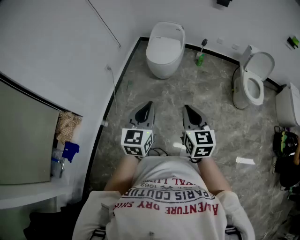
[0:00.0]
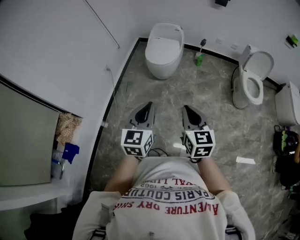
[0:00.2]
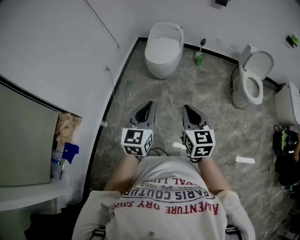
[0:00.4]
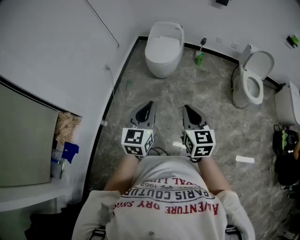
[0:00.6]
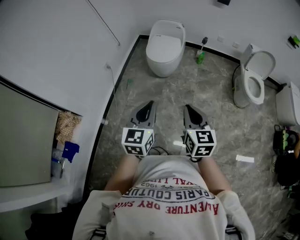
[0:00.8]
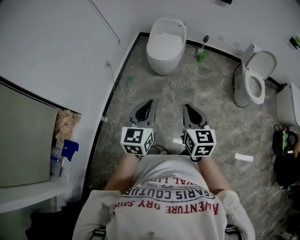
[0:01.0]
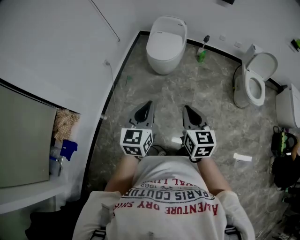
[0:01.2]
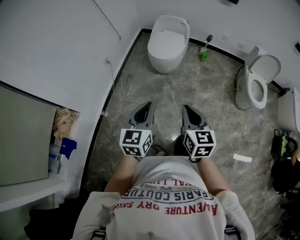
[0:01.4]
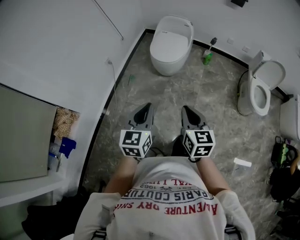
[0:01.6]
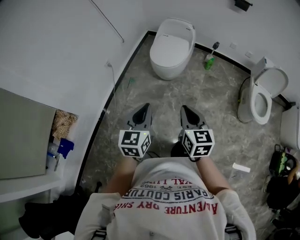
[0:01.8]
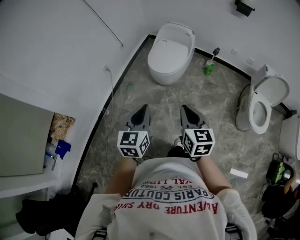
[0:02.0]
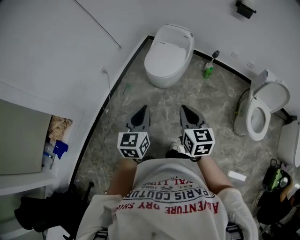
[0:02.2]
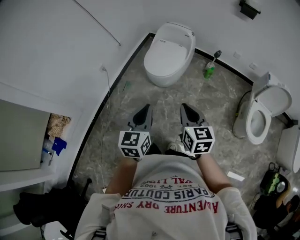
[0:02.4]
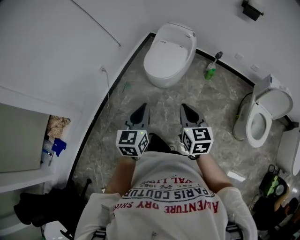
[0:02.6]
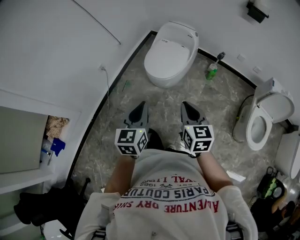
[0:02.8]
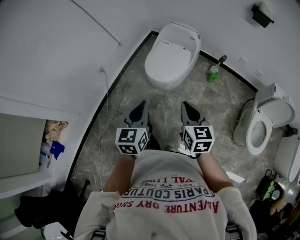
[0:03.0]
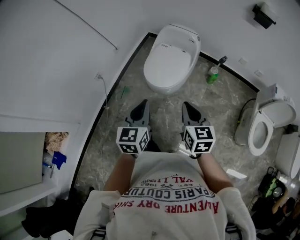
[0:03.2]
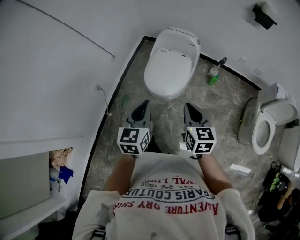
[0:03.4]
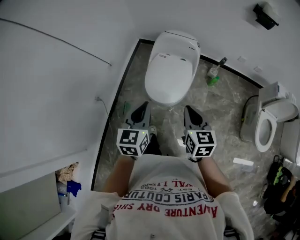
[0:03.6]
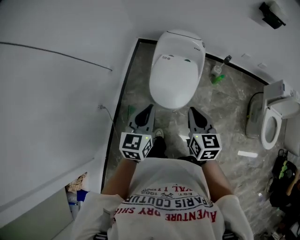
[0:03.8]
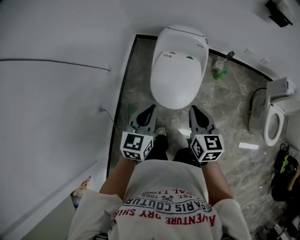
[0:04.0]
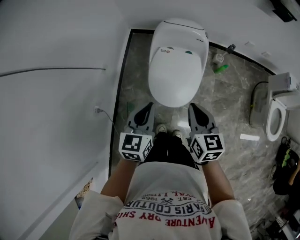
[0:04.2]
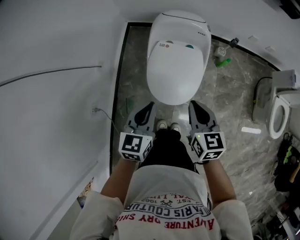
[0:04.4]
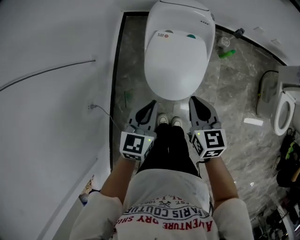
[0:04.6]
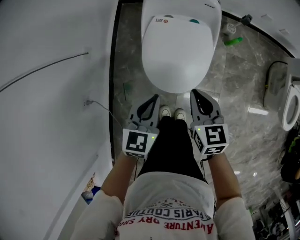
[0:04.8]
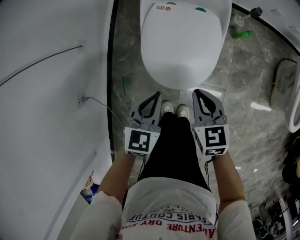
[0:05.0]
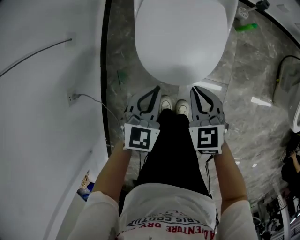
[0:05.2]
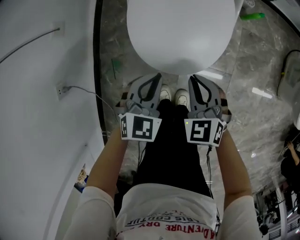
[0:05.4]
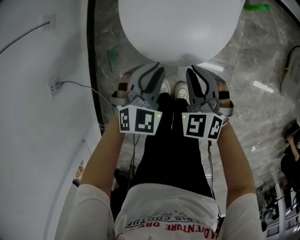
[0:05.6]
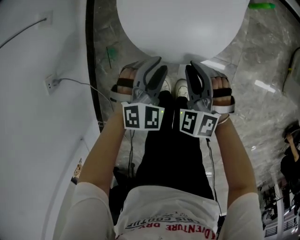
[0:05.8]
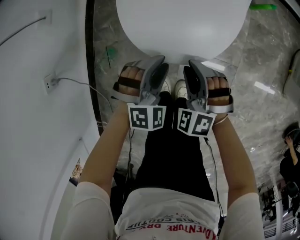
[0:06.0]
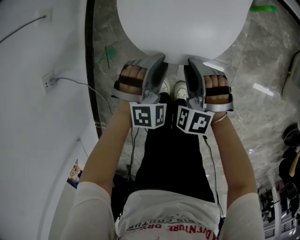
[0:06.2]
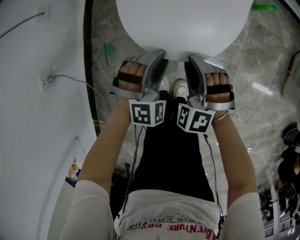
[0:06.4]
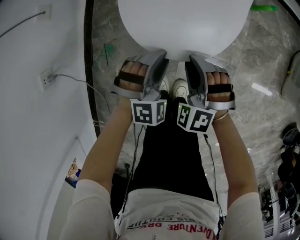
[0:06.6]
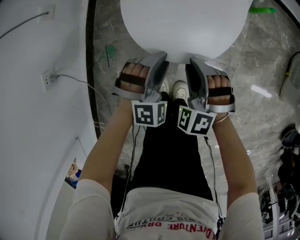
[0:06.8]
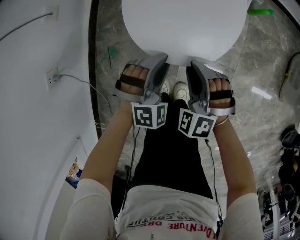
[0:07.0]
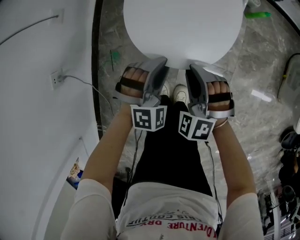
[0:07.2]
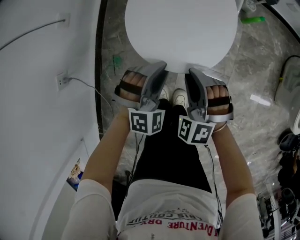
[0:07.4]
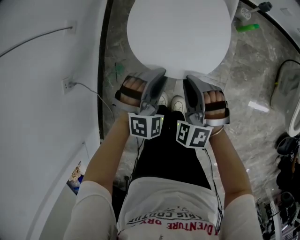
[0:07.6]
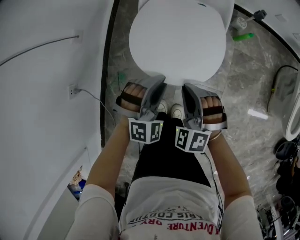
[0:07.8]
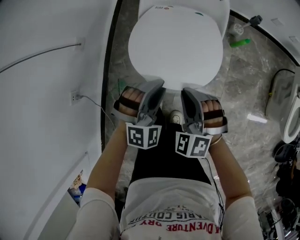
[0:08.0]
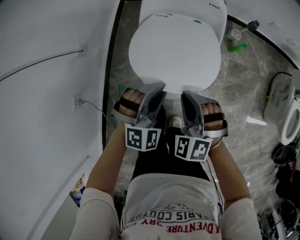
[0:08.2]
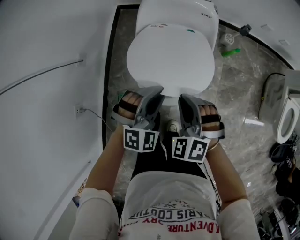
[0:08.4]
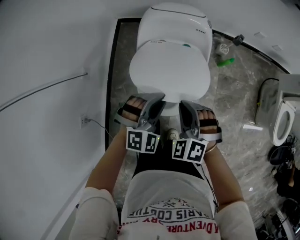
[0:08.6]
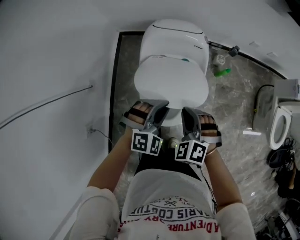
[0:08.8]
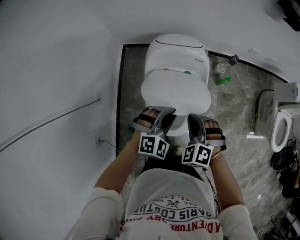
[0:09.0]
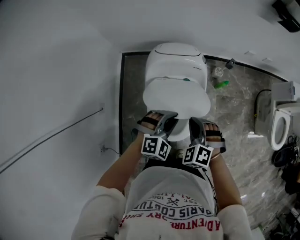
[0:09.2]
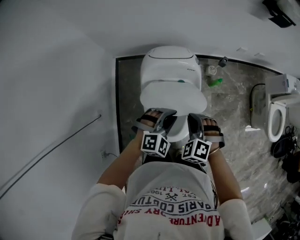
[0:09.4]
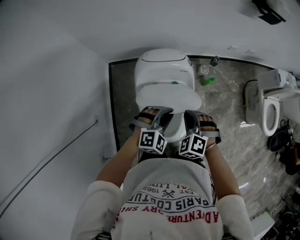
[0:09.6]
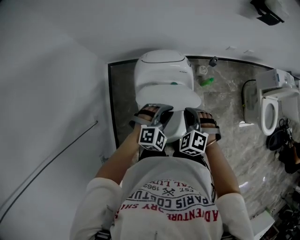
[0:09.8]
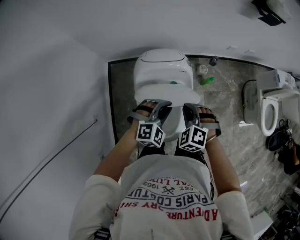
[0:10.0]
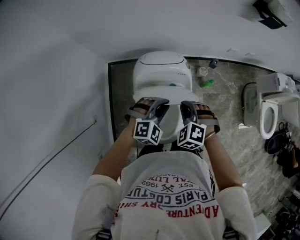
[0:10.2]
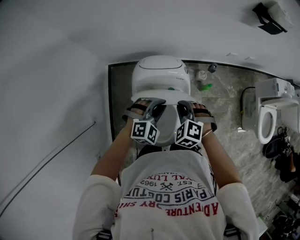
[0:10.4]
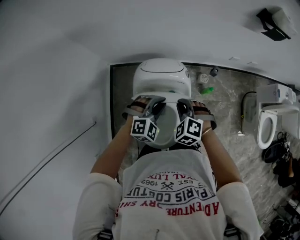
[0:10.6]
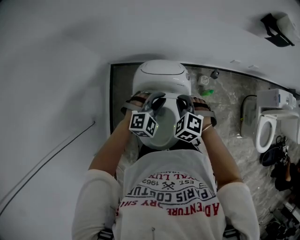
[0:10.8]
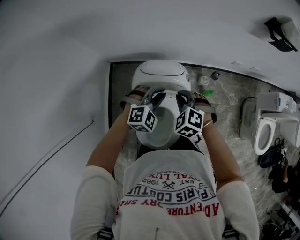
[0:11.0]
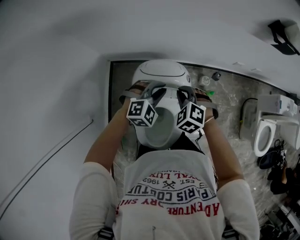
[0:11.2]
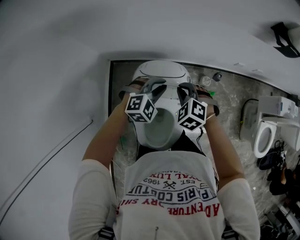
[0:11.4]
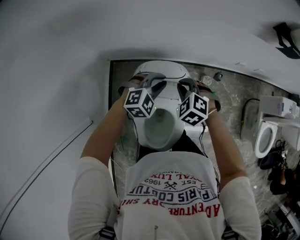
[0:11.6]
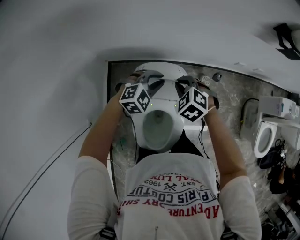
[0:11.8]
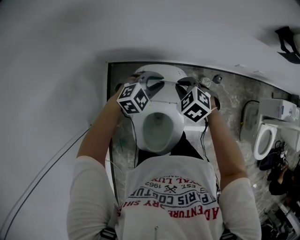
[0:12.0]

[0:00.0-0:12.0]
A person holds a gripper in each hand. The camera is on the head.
0:00.0 to 0:01.6: Both grippers move forward, about 10 cm.
0:01.6 to 0:03.0: The two grippers go approximately 30 cm forward and to the right.
0:03.0 to 0:04.4: Both grippers travel together forward, to the left and downward, about 40 cm. The right gripper turns by about 20 degrees, while the left gripper changes its angle by roughly 30 degrees.
0:04.4 to 0:06.0: The two grippers go some 40 cm downward. The left gripper rotates around the line of its fingers by some 60 degrees, clockwise from behind, and opens its fingers. Meanwhile the right gripper twists some 70 degrees counterclockwise, seen from behind.
0:06.0 to 0:07.6: Both grippers move upward, approximately 15 cm.
0:07.6 to 0:09.0: The two grippers go about 25 cm upward and forward.
0:09.0 to 0:10.4: The two grippers go approximately 15 cm forward.
0:10.4 to 0:12.0: The grippers both shift forward by about 20 cm.

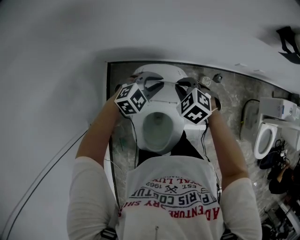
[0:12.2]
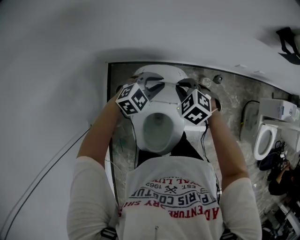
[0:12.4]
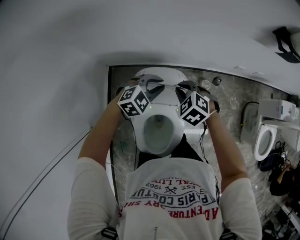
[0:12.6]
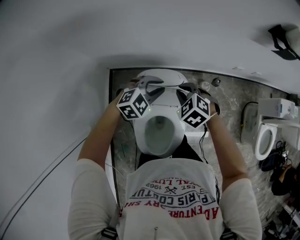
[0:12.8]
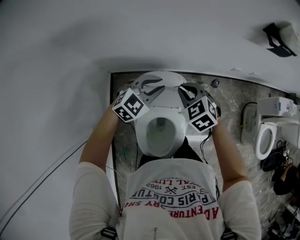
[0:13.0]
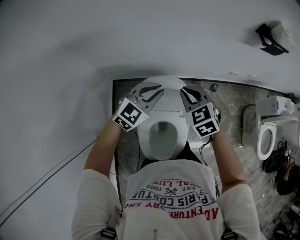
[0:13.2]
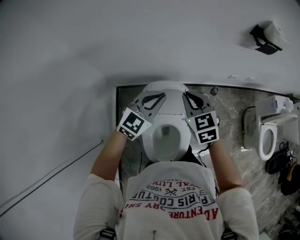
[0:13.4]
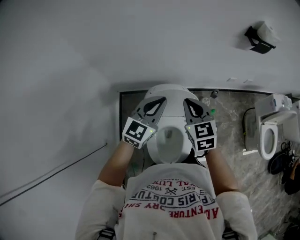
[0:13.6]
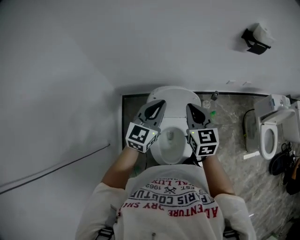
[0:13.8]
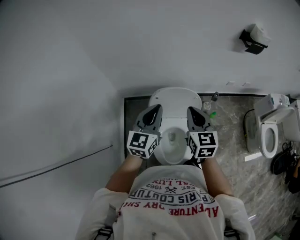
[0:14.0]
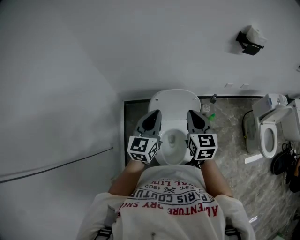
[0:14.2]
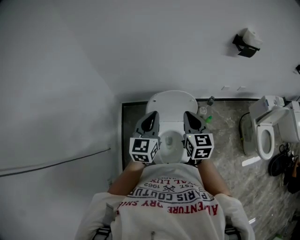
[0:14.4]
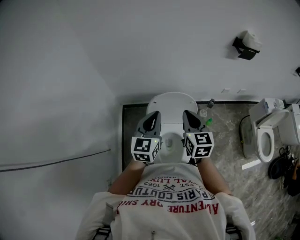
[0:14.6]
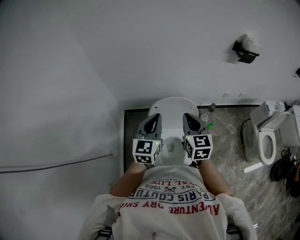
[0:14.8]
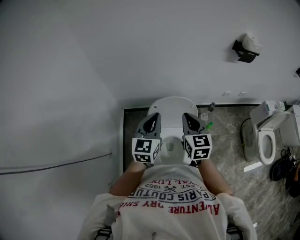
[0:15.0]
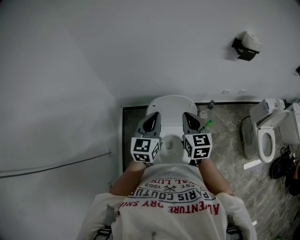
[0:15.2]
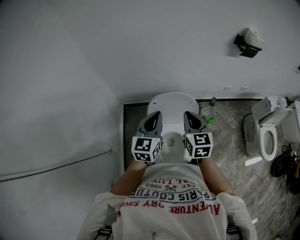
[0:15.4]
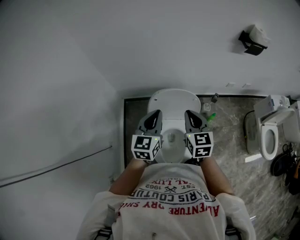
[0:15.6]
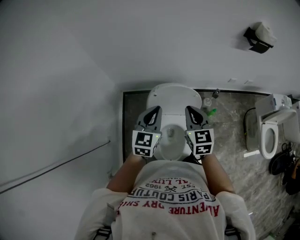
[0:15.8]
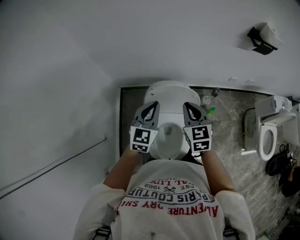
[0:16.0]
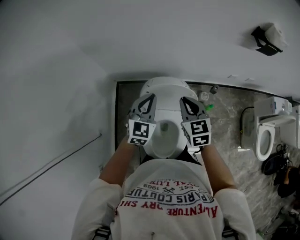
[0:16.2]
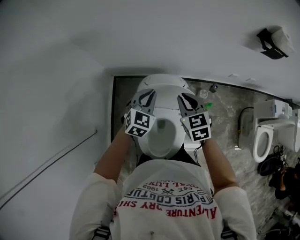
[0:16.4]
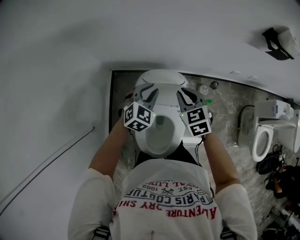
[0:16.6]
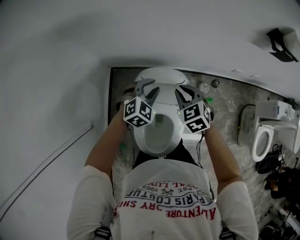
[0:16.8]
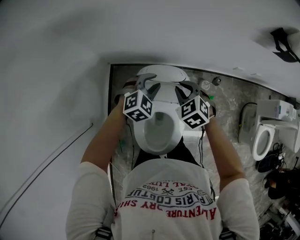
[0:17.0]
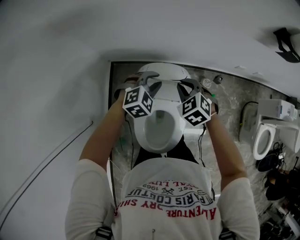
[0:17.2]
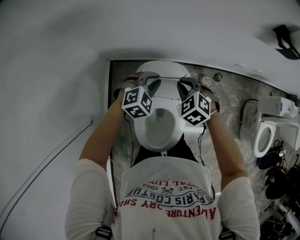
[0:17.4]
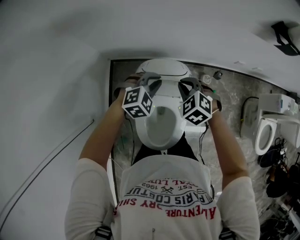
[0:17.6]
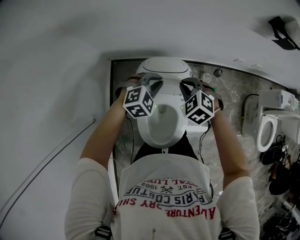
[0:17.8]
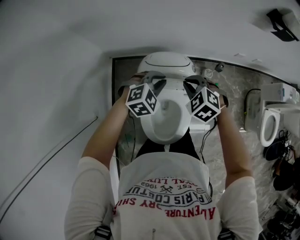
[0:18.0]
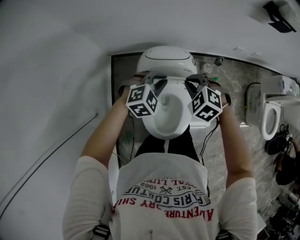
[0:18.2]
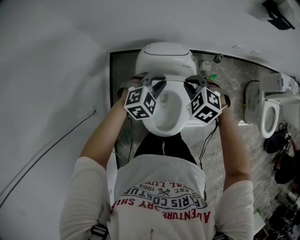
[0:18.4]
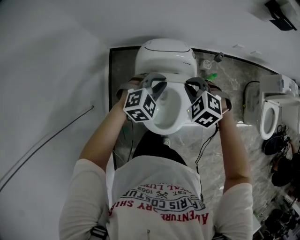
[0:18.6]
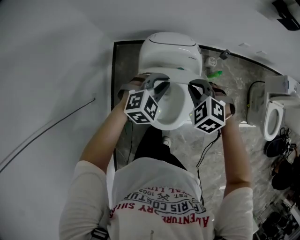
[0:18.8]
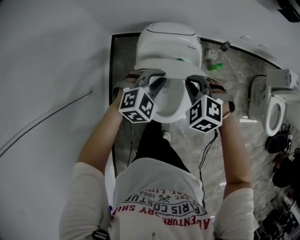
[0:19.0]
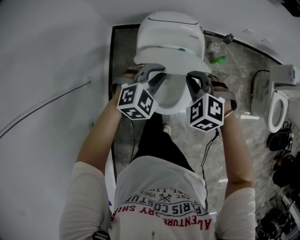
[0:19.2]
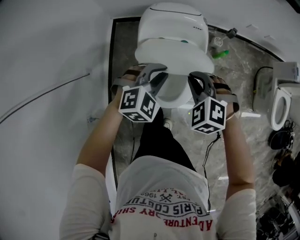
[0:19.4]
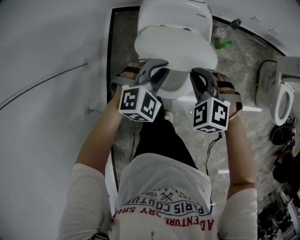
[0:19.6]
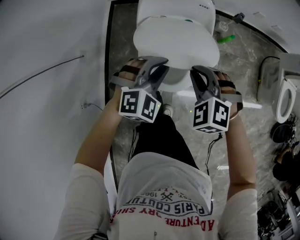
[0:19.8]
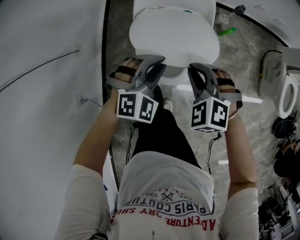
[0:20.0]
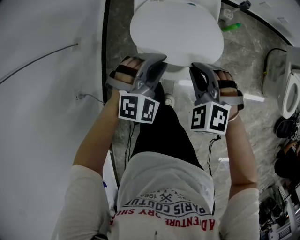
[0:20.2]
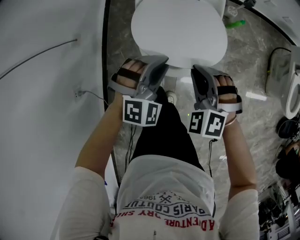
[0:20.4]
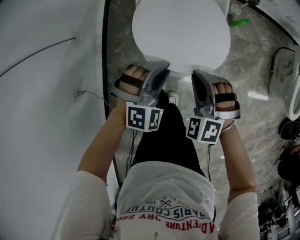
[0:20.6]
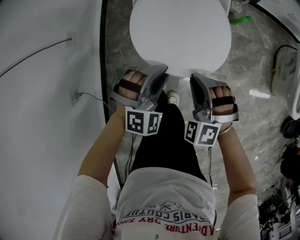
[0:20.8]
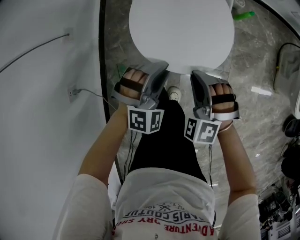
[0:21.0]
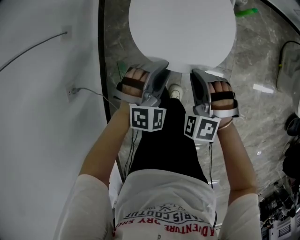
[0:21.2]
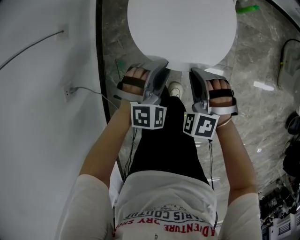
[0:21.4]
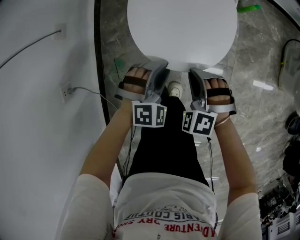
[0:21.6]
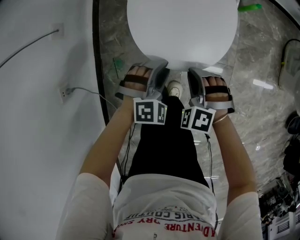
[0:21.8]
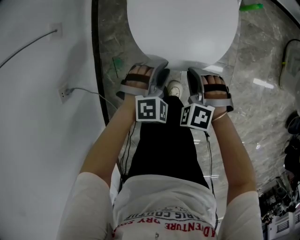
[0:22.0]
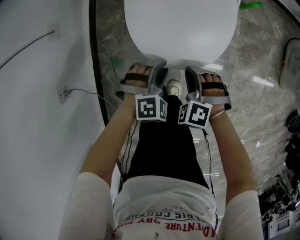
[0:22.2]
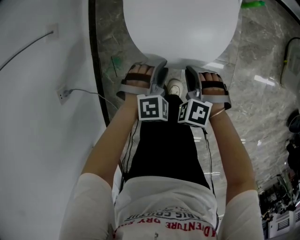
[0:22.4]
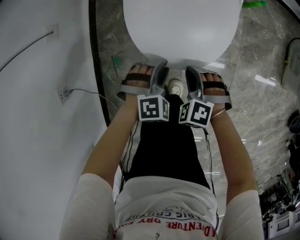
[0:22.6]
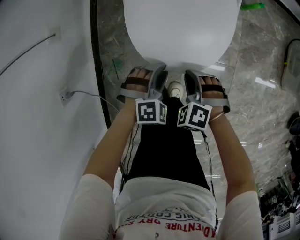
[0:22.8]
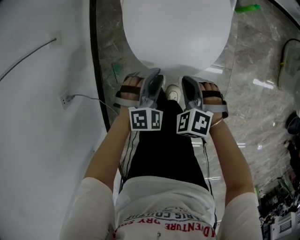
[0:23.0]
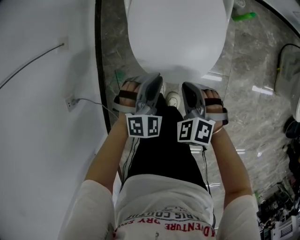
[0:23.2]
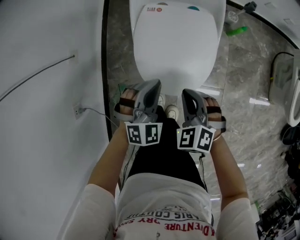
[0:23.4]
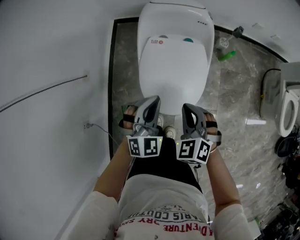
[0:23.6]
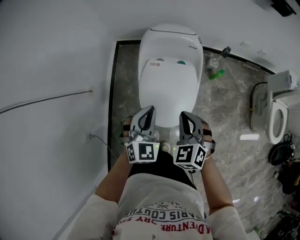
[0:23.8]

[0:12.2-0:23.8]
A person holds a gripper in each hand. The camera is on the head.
0:12.2 to 0:13.6: Both grippers move upward and backward, about 25 cm. The right gripper angles its fingers upward, by roughly 30 degrees. The left gripper angles its fingers upward, by some 30 degrees.
0:13.6 to 0:15.0: The two grippers go about 10 cm backward. The left gripper rotates about 20 degrees.
0:15.0 to 0:16.6: The right gripper goes roughly 20 cm forward and downward, and swivels some 30 degrees. The left gripper is displaced downward and forward by roughly 25 cm, and turns by some 40 degrees.
0:16.6 to 0:18.0: The left gripper ends up approximately 5 cm from where it was, and changes its angle by some 30 degrees, while the right gripper moves some 5 cm, and rotates some 30 degrees.
0:18.0 to 0:19.4: Both grippers travel together backward, some 25 cm.
0:19.4 to 0:21.0: The grippers both shift downward and backward by approximately 25 cm.
0:21.0 to 0:22.4: Both grippers move downward, roughly 15 cm. The left gripper rotates some 20 degrees.
0:22.4 to 0:23.8: The grippers both shift upward by about 35 cm. The left gripper tips its fingers upward by about 30 degrees, and closes its fingers, while the right gripper rotates roughly 40 degrees.
